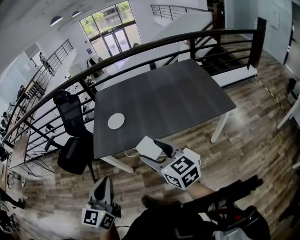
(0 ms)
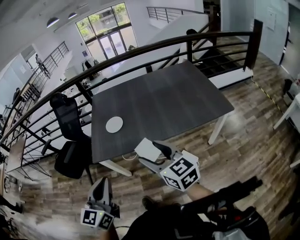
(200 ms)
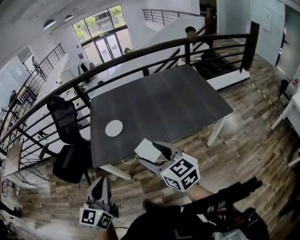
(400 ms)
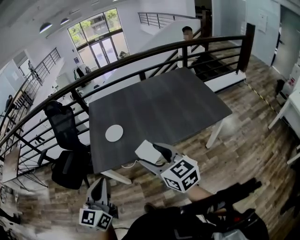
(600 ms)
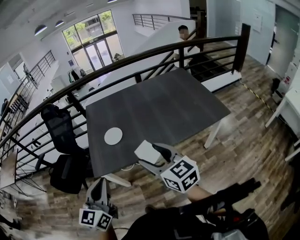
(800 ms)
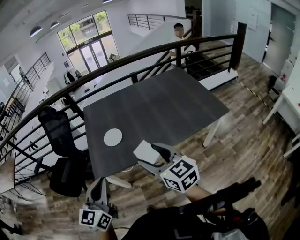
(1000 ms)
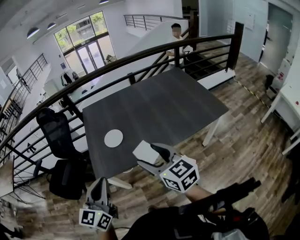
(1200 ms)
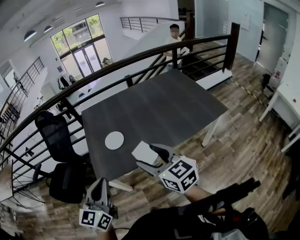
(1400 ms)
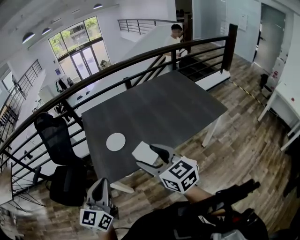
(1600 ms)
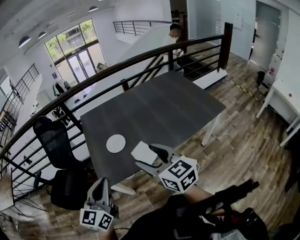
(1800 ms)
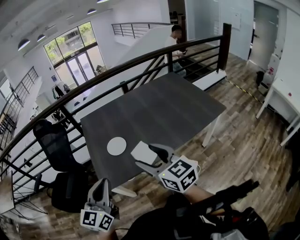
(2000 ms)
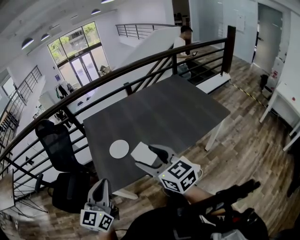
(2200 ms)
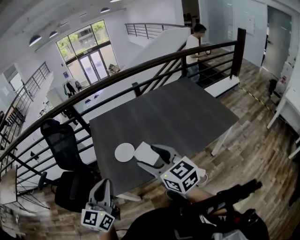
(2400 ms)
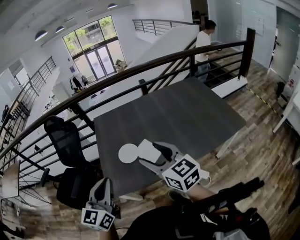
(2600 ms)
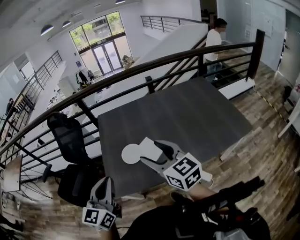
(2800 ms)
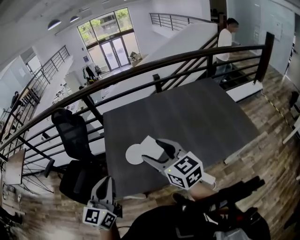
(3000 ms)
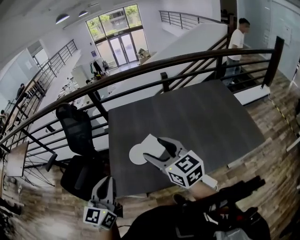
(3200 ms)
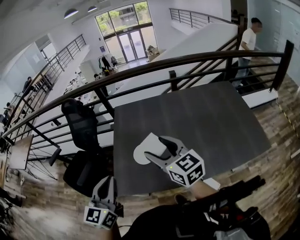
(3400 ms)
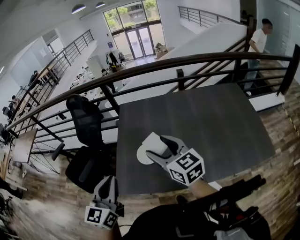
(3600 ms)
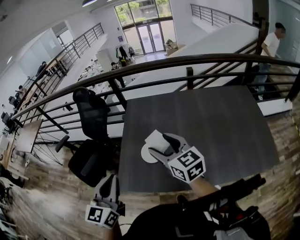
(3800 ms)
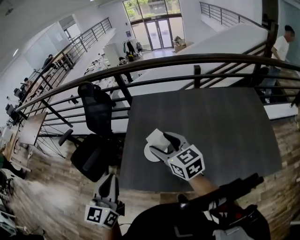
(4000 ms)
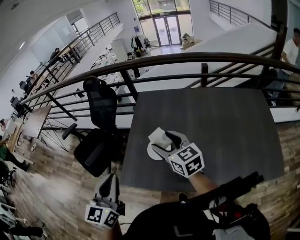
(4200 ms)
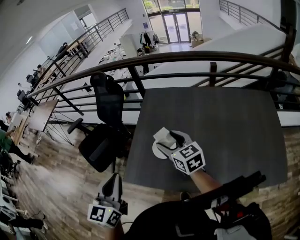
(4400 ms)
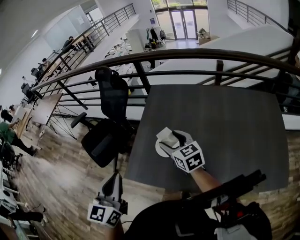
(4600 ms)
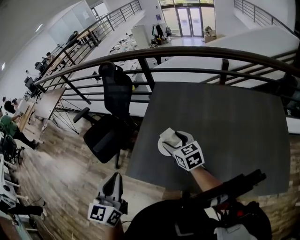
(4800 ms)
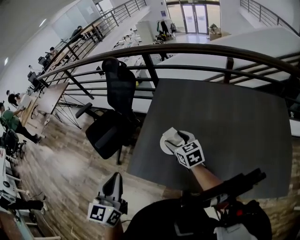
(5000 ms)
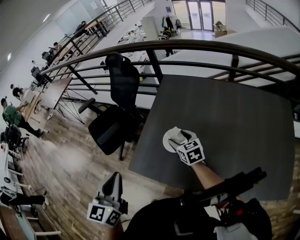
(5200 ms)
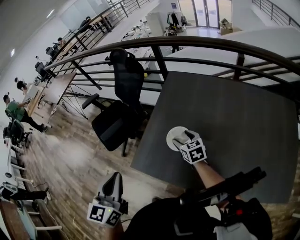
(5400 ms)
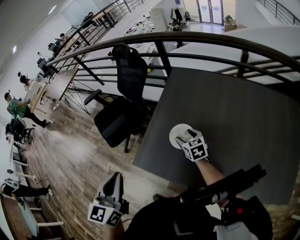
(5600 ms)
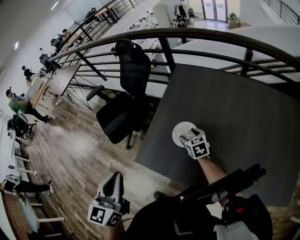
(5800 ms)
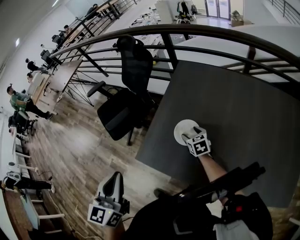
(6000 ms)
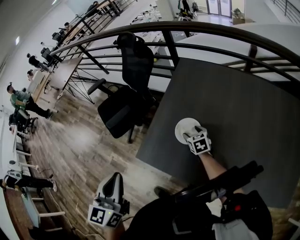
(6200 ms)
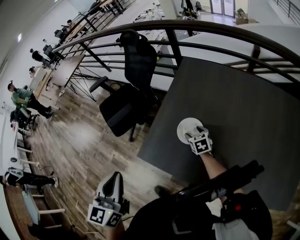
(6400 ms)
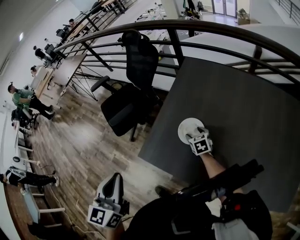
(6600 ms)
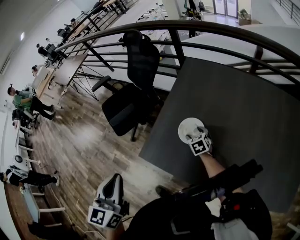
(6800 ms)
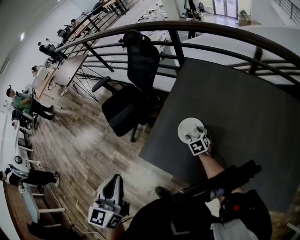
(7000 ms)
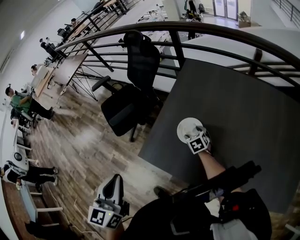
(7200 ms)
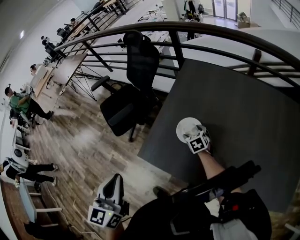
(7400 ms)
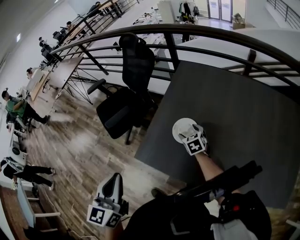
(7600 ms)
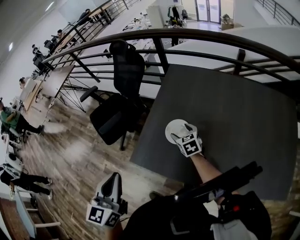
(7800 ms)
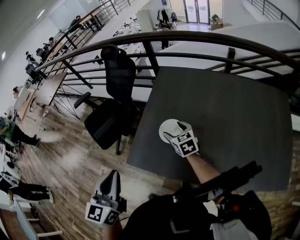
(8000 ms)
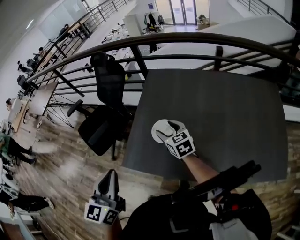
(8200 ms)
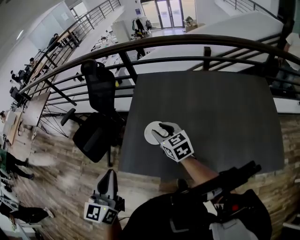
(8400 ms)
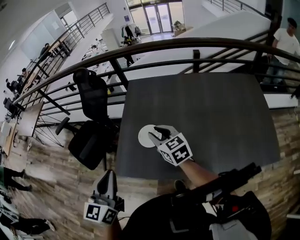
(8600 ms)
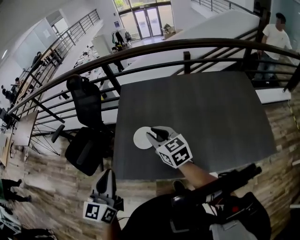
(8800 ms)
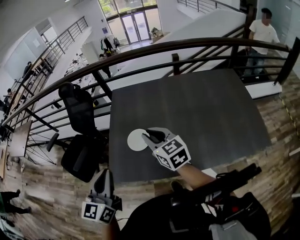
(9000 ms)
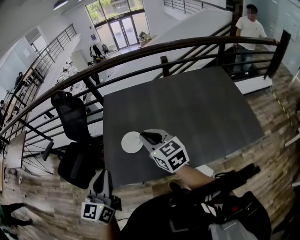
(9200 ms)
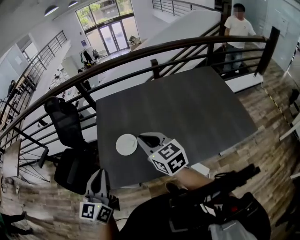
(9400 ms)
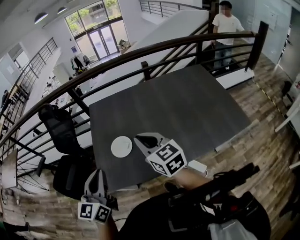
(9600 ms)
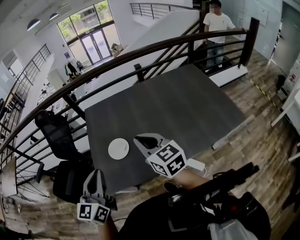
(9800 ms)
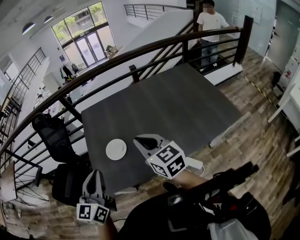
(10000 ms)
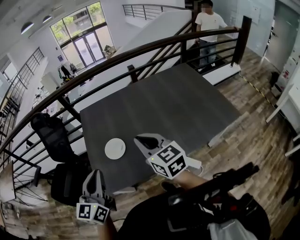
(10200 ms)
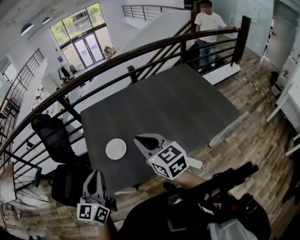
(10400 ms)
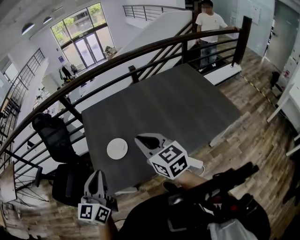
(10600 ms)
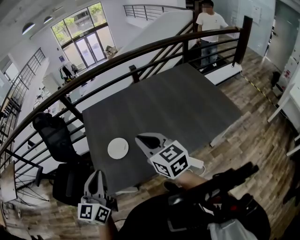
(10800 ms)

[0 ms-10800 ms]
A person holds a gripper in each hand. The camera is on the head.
0 ms to 1600 ms: The right gripper travels to the left and forward by some 20 cm, while the left gripper heads forward and to the left, covering approximately 25 cm.
1600 ms to 3000 ms: The two grippers go some 15 cm forward.
3000 ms to 4600 ms: The left gripper swivels some 30 degrees. Meanwhile the right gripper travels forward and downward by about 20 cm, and swivels about 20 degrees.
4600 ms to 6200 ms: The right gripper moves downward, approximately 20 cm, and rotates some 20 degrees.
6200 ms to 7800 ms: The right gripper shifts by some 5 cm.
7800 ms to 9200 ms: The right gripper is displaced upward and backward by some 25 cm, turns by some 30 degrees, and closes up, while the left gripper goes approximately 5 cm to the right, and turns by approximately 30 degrees.
9200 ms to 10800 ms: The right gripper moves backward, approximately 5 cm.

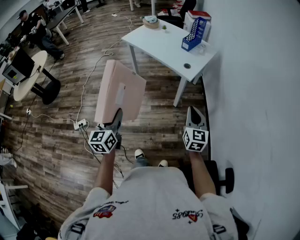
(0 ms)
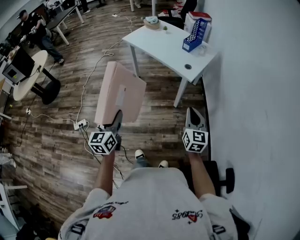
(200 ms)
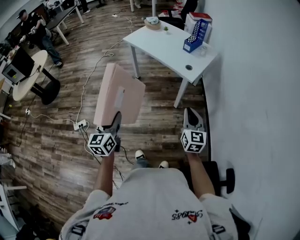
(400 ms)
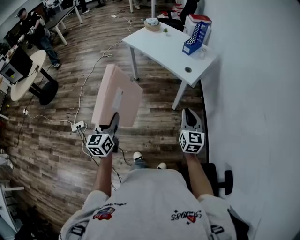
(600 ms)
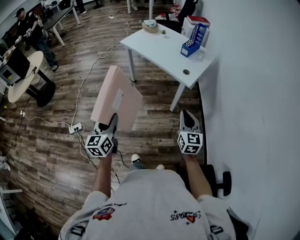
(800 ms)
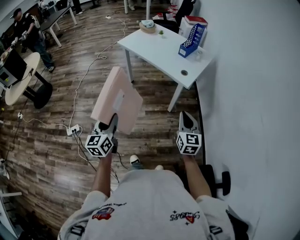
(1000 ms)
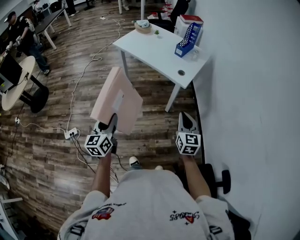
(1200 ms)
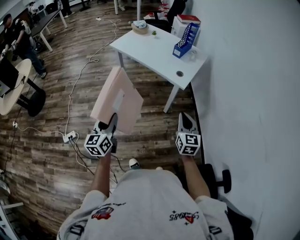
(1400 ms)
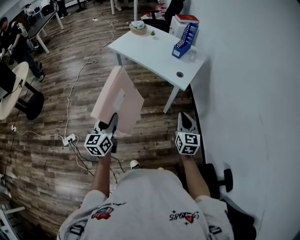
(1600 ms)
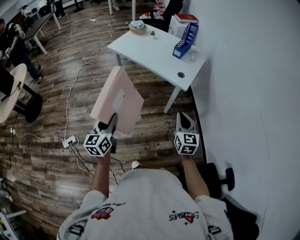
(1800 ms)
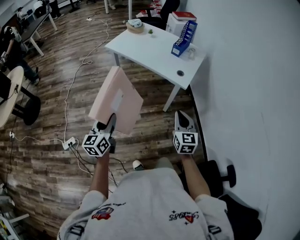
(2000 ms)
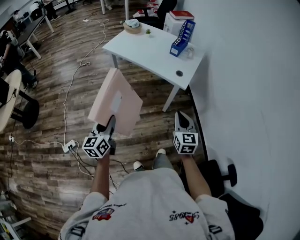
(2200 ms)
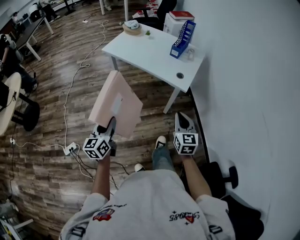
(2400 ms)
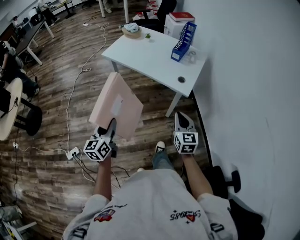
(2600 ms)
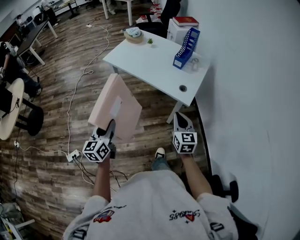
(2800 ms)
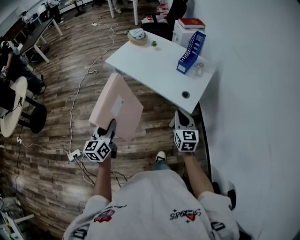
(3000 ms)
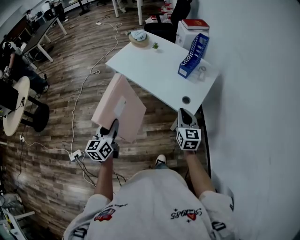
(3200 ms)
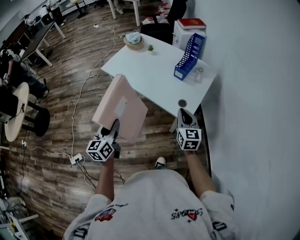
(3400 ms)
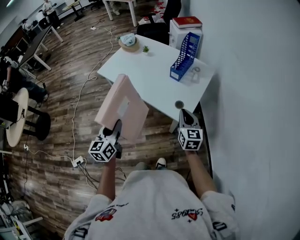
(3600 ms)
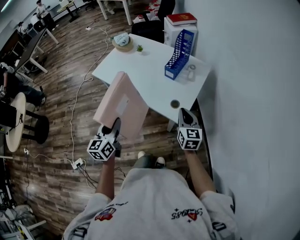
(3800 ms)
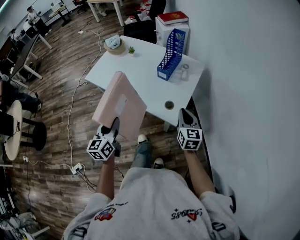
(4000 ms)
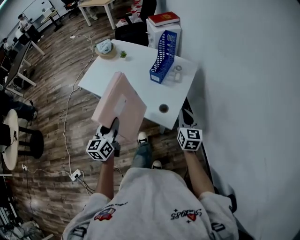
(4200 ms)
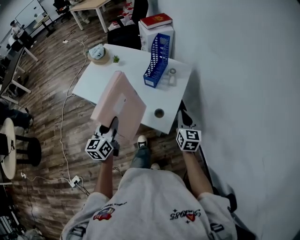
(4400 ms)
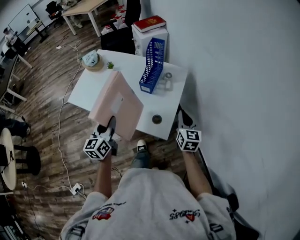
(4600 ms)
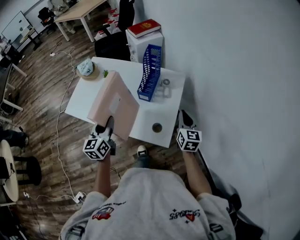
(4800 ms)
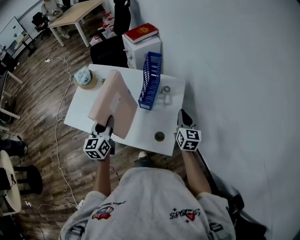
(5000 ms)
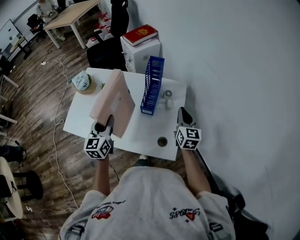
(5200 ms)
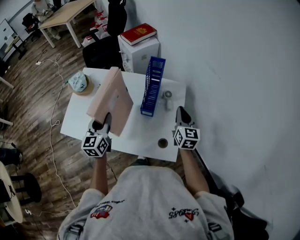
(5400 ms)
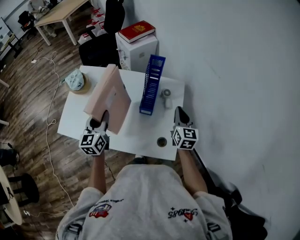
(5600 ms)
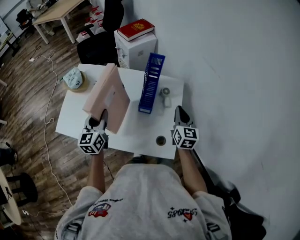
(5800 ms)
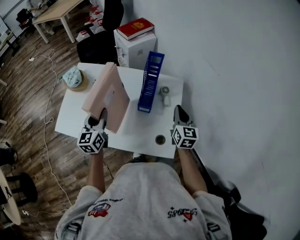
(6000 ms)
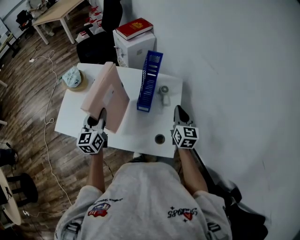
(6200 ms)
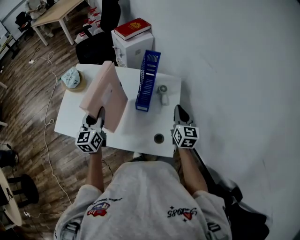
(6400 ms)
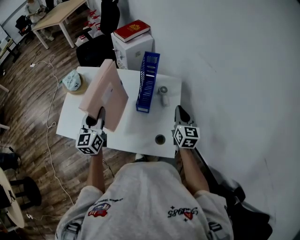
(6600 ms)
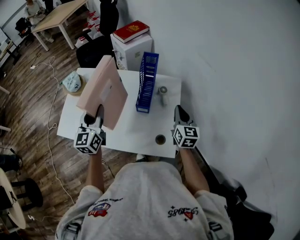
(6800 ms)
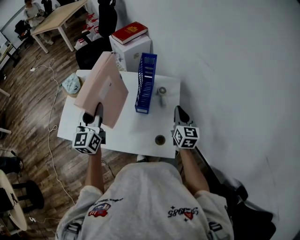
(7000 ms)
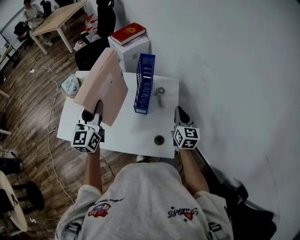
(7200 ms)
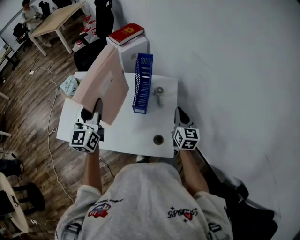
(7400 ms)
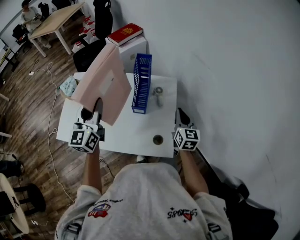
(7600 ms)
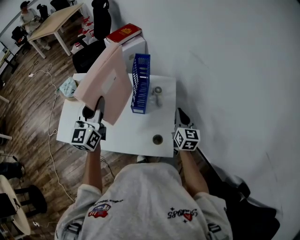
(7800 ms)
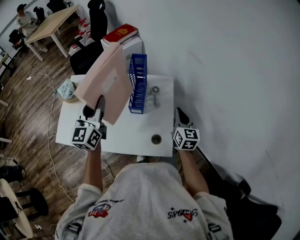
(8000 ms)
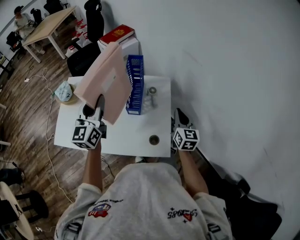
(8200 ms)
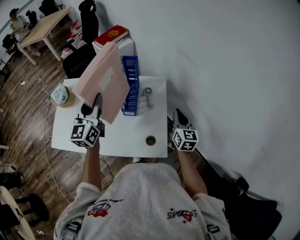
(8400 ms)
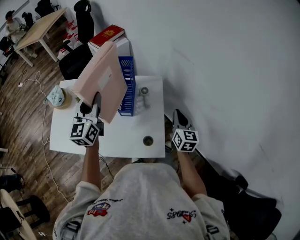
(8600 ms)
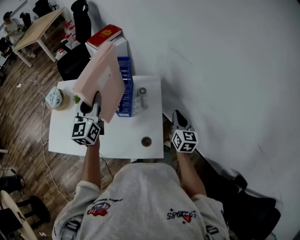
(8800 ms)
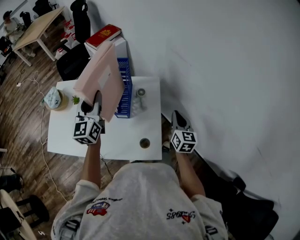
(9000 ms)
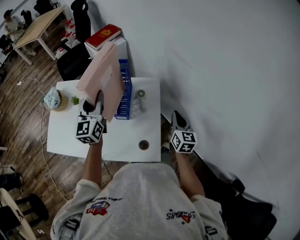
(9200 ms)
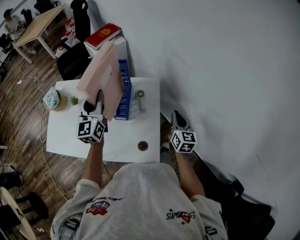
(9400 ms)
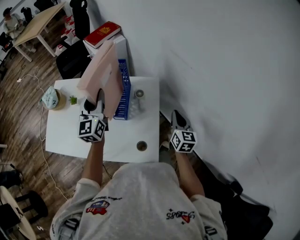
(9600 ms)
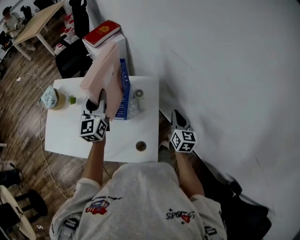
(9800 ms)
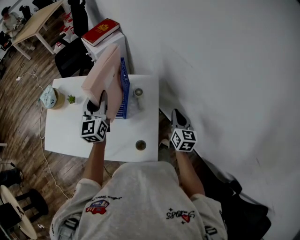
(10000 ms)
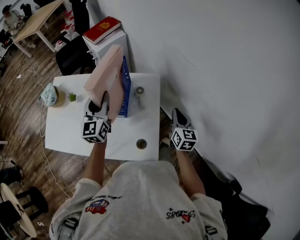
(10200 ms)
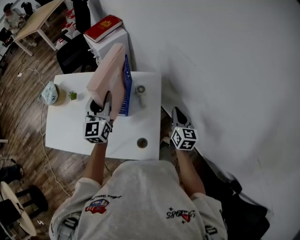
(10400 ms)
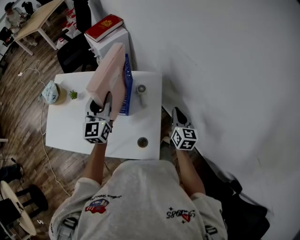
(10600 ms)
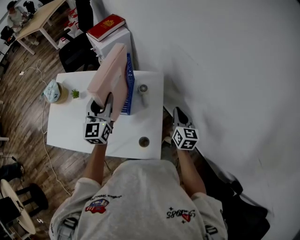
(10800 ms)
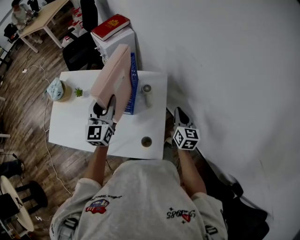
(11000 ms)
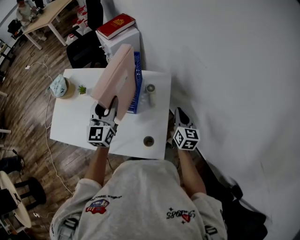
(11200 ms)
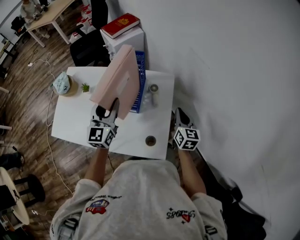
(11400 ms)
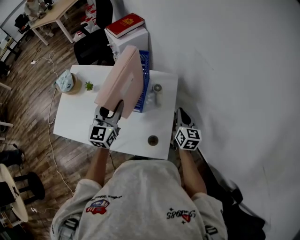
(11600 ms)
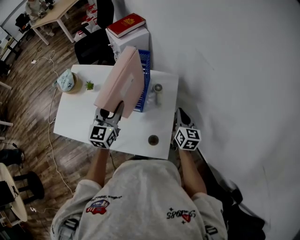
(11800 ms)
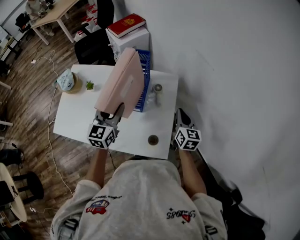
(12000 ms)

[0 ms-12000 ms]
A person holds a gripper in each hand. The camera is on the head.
0 ms to 1600 ms: The right gripper shifts some 10 cm to the left and forward, while the left gripper moves forward and to the left, about 15 cm.
1600 ms to 3000 ms: Both grippers move forward, roughly 25 cm.
3000 ms to 4400 ms: The left gripper heads forward and to the right, covering approximately 35 cm. The right gripper moves to the right and forward, some 30 cm.
4400 ms to 6000 ms: The grippers both shift forward and to the left by roughly 25 cm.
6000 ms to 7600 ms: The right gripper shifts roughly 5 cm to the right. Meanwhile the left gripper heads upward and to the right, covering about 15 cm.
7600 ms to 9000 ms: The right gripper travels to the right by some 10 cm. The left gripper shifts some 15 cm forward and to the right.
9000 ms to 10400 ms: The left gripper is displaced downward and to the right by approximately 10 cm; the right gripper travels forward by about 5 cm.
10400 ms to 12000 ms: The right gripper moves to the left, roughly 5 cm. The left gripper shifts roughly 10 cm backward.

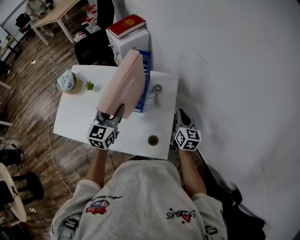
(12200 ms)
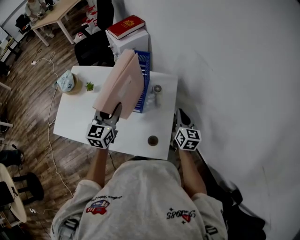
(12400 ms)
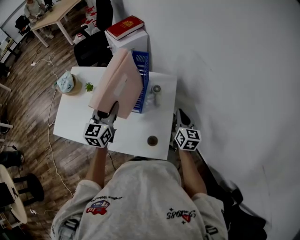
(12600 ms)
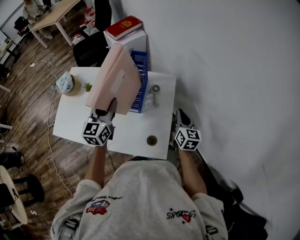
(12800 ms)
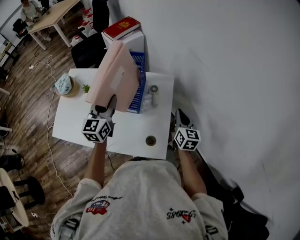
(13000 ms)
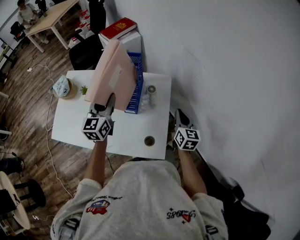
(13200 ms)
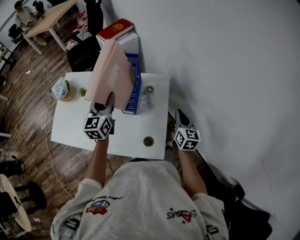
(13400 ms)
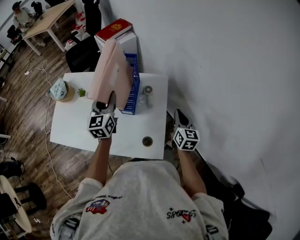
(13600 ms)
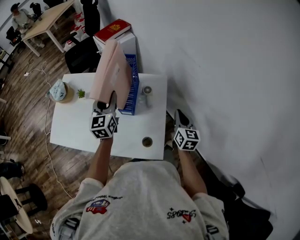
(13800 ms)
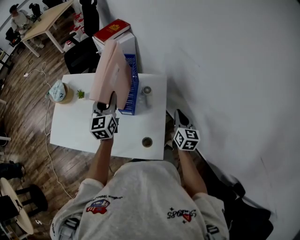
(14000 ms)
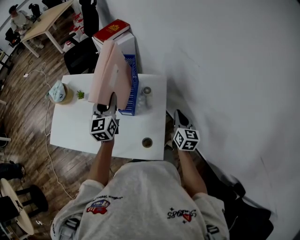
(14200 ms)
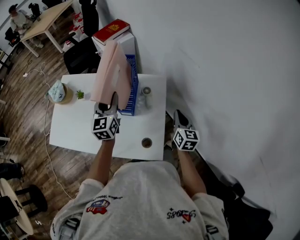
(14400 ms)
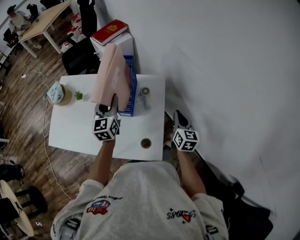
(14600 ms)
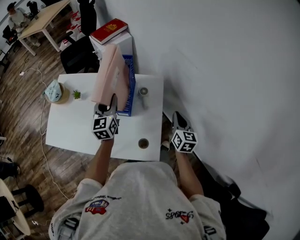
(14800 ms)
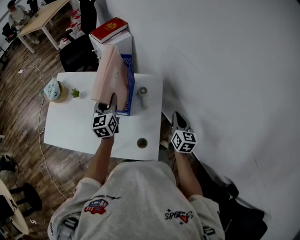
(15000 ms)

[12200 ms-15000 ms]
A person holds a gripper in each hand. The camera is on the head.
12200 ms to 13600 ms: The left gripper travels forward by some 5 cm.
13600 ms to 15000 ms: The left gripper shifts some 5 cm downward.
